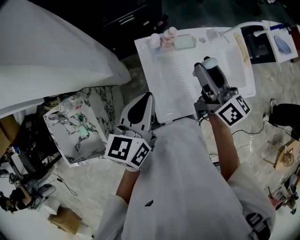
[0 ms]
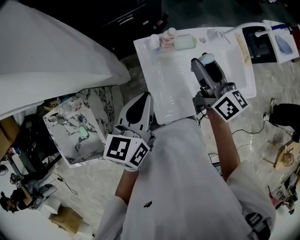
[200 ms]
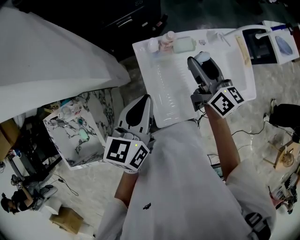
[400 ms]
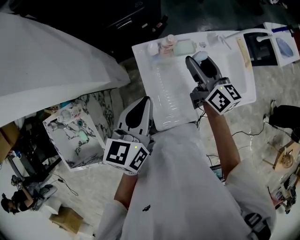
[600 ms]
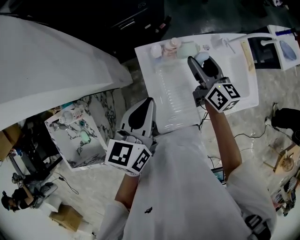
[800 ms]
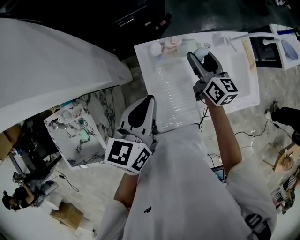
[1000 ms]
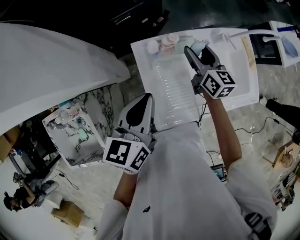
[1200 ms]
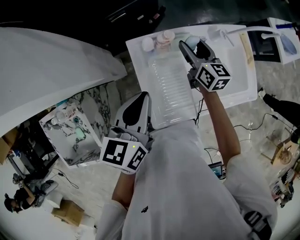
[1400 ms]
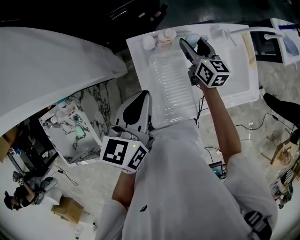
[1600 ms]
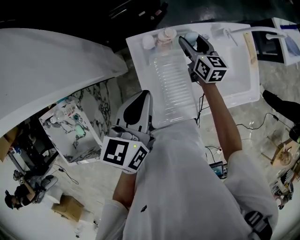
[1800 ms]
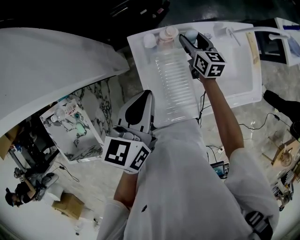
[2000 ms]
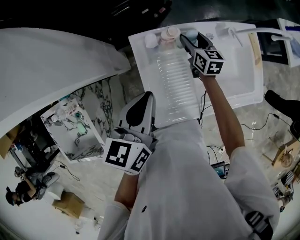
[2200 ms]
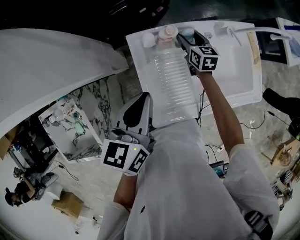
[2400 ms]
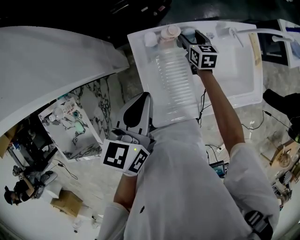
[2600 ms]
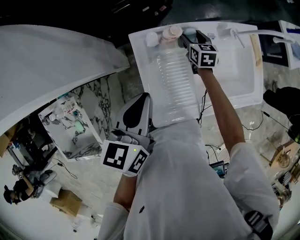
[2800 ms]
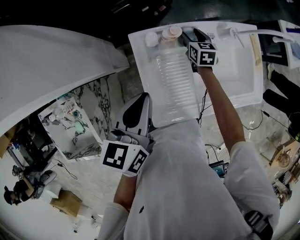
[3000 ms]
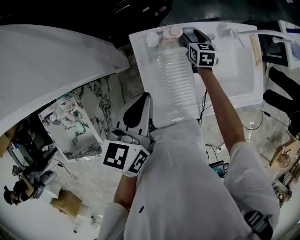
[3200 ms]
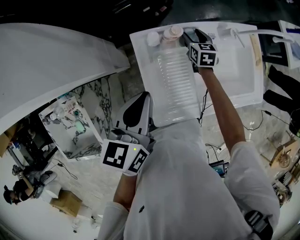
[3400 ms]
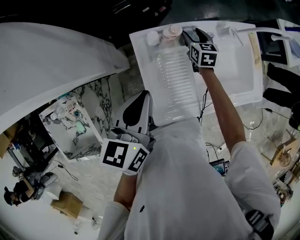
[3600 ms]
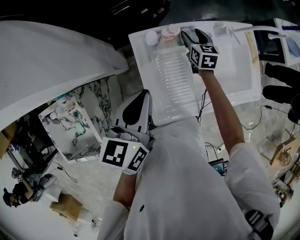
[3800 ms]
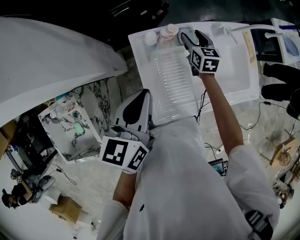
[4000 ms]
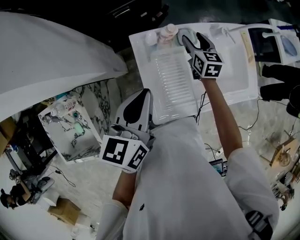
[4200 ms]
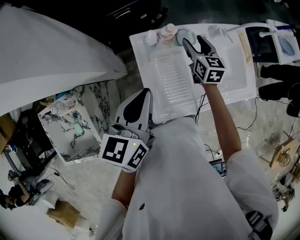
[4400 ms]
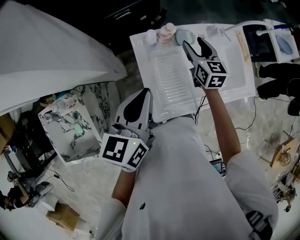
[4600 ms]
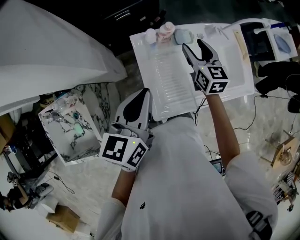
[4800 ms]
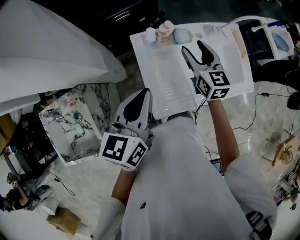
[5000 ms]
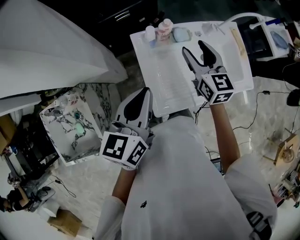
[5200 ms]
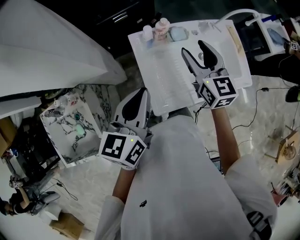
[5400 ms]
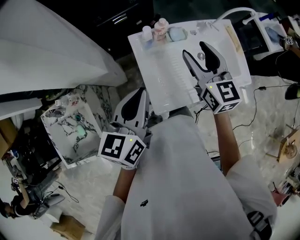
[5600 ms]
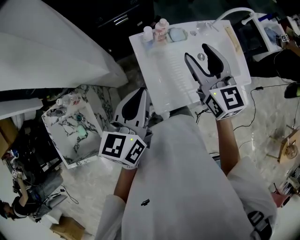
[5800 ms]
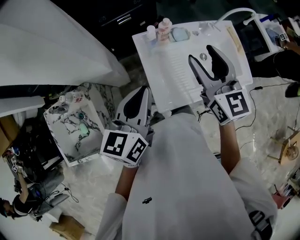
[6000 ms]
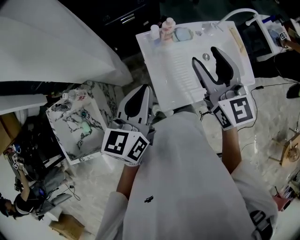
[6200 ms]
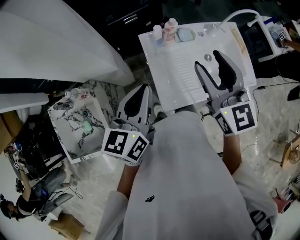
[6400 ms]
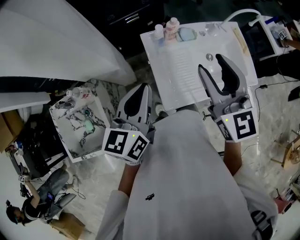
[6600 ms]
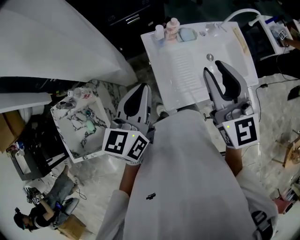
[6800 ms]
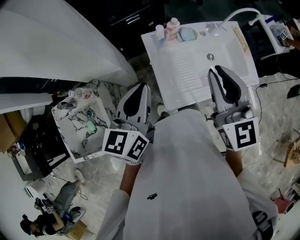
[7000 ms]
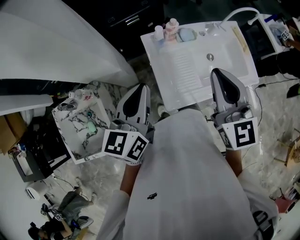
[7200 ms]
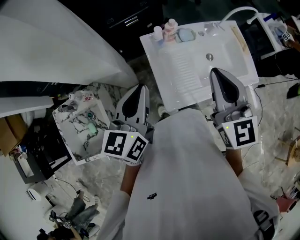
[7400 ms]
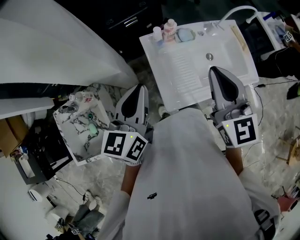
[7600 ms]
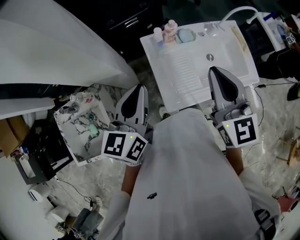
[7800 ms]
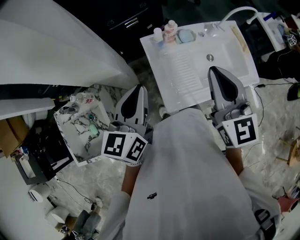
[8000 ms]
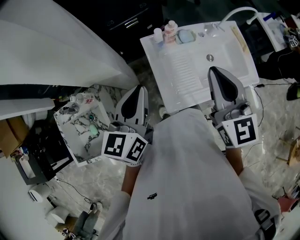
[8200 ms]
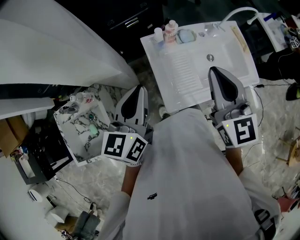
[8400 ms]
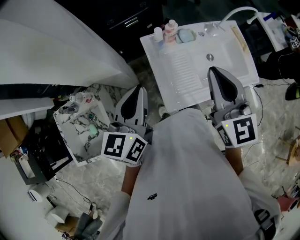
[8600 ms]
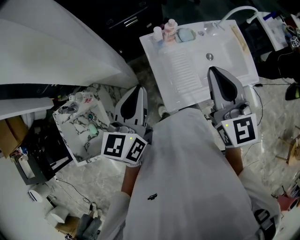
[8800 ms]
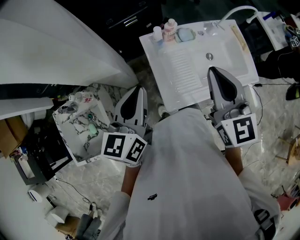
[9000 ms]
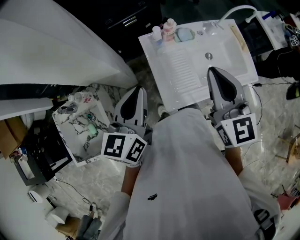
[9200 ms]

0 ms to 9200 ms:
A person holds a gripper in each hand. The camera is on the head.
0 ms to 1600 ms: The left gripper goes approximately 5 cm forward; the right gripper is displaced downward and forward by about 25 cm, and changes its angle by roughly 30 degrees.
1600 ms to 3000 ms: The right gripper goes roughly 10 cm downward, and swivels some 20 degrees.
3000 ms to 4600 ms: The left gripper shifts by approximately 5 cm; the right gripper is displaced upward and backward by some 20 cm.
4600 ms to 6200 ms: The right gripper heads upward and backward, covering some 30 cm, and changes its angle by approximately 20 degrees. Meanwhile the left gripper moves backward, approximately 10 cm.
6200 ms to 7600 ms: The right gripper is displaced backward by some 5 cm, and closes up.
7600 ms to 9200 ms: The two grippers keep their place.

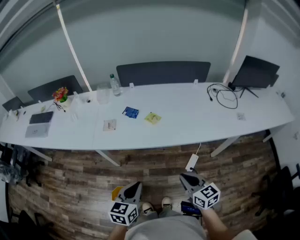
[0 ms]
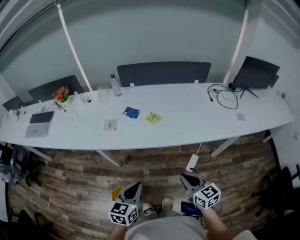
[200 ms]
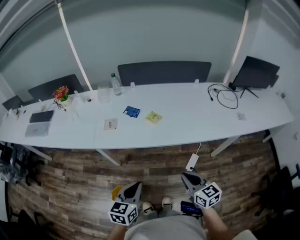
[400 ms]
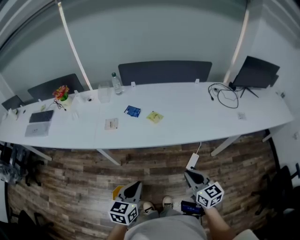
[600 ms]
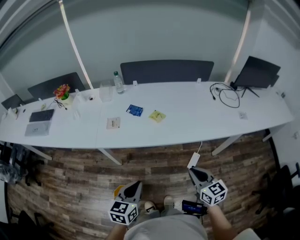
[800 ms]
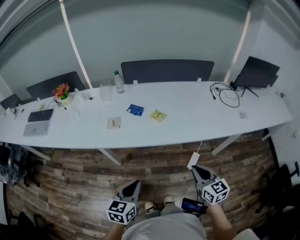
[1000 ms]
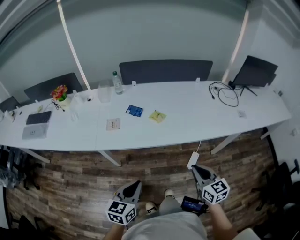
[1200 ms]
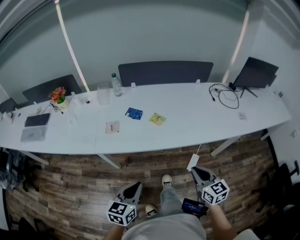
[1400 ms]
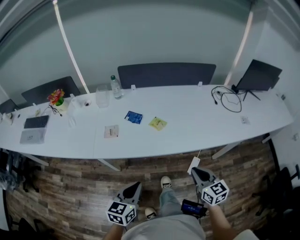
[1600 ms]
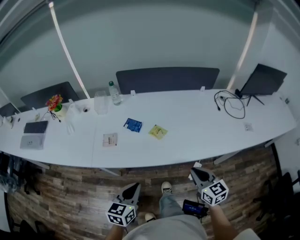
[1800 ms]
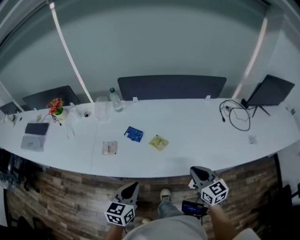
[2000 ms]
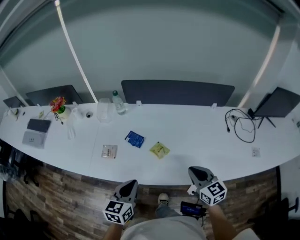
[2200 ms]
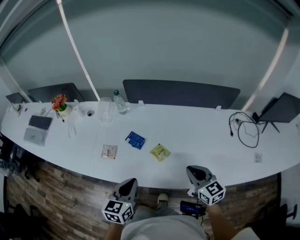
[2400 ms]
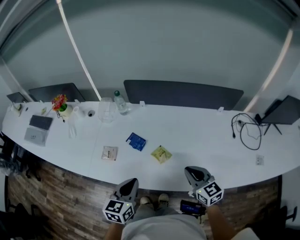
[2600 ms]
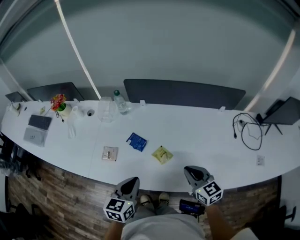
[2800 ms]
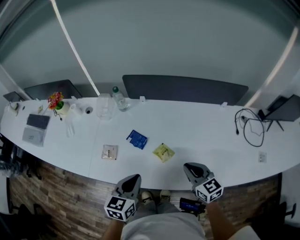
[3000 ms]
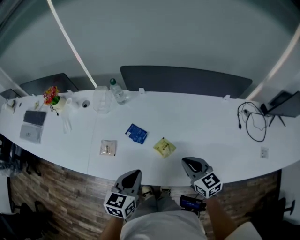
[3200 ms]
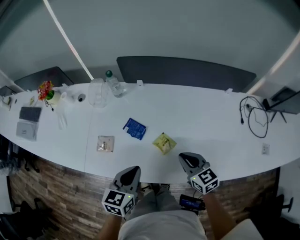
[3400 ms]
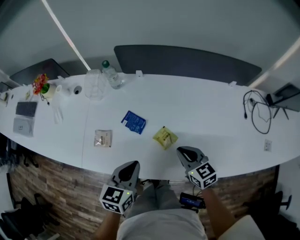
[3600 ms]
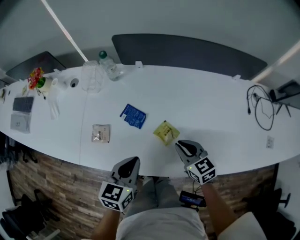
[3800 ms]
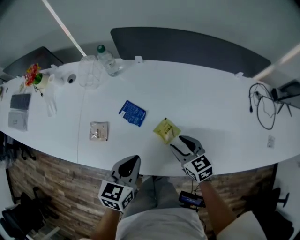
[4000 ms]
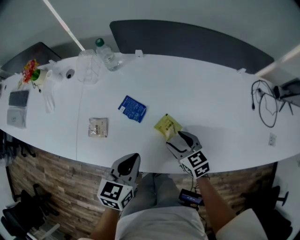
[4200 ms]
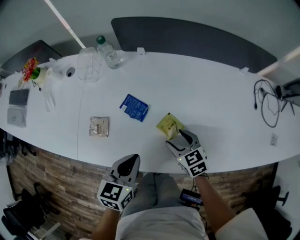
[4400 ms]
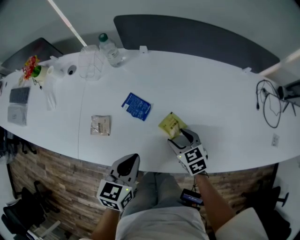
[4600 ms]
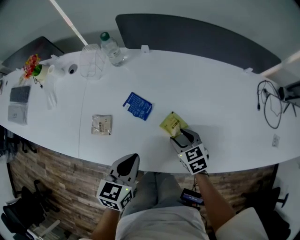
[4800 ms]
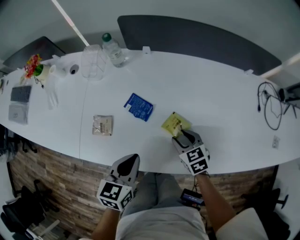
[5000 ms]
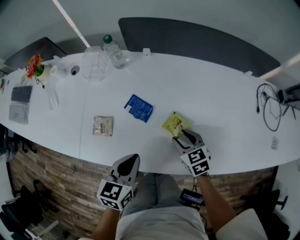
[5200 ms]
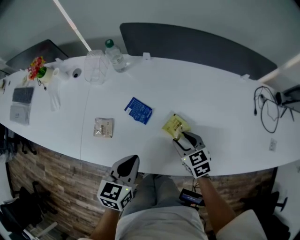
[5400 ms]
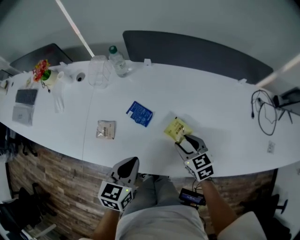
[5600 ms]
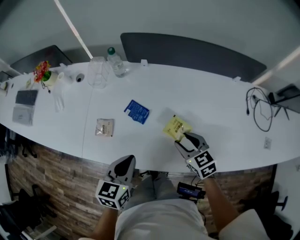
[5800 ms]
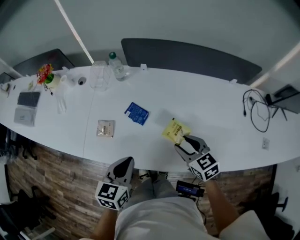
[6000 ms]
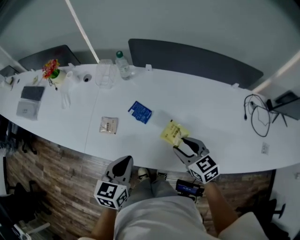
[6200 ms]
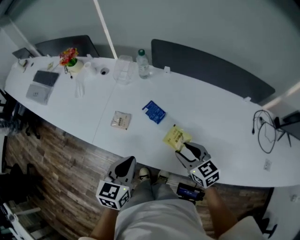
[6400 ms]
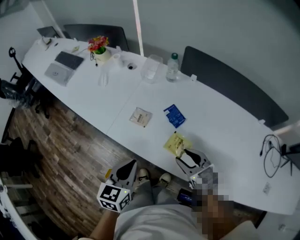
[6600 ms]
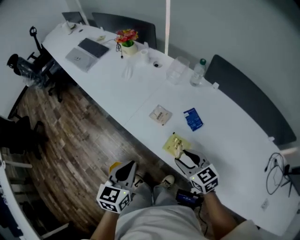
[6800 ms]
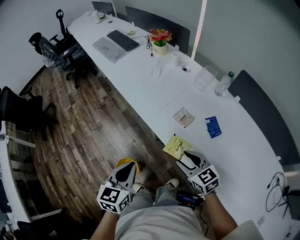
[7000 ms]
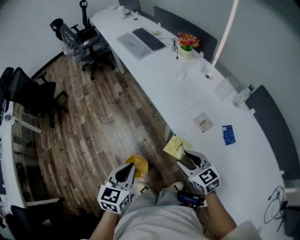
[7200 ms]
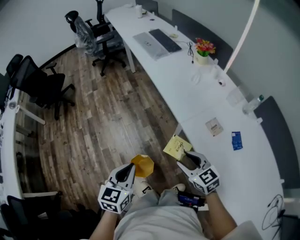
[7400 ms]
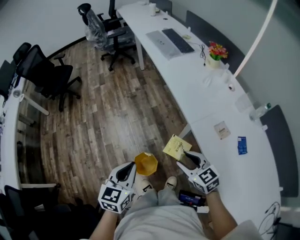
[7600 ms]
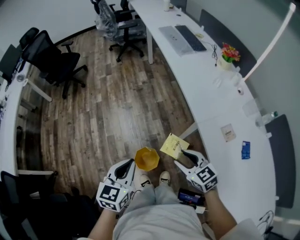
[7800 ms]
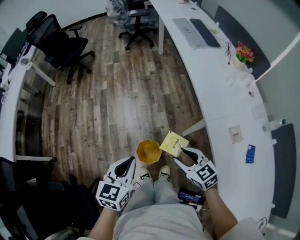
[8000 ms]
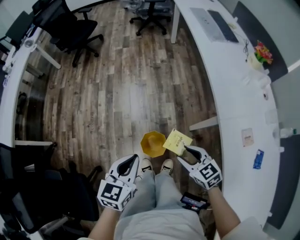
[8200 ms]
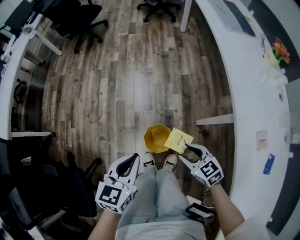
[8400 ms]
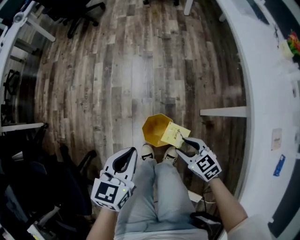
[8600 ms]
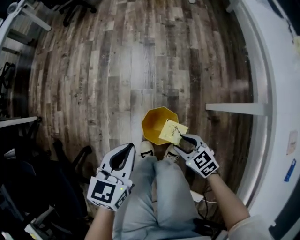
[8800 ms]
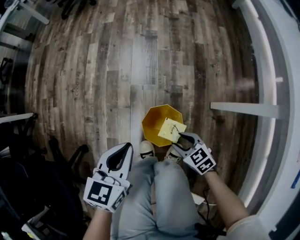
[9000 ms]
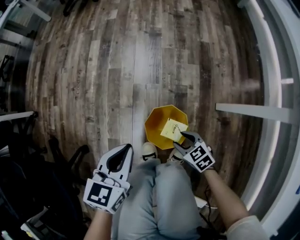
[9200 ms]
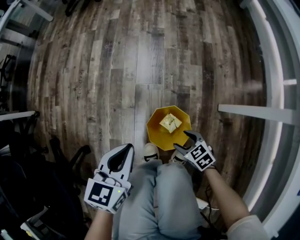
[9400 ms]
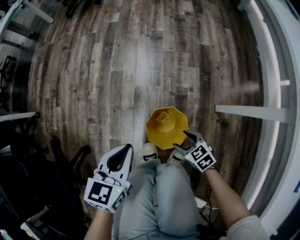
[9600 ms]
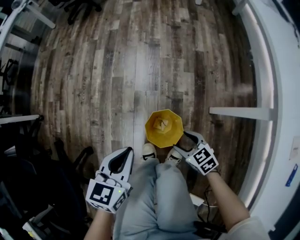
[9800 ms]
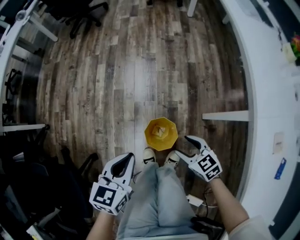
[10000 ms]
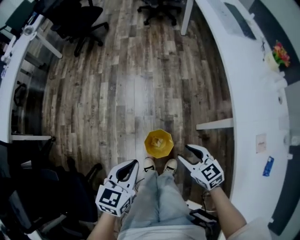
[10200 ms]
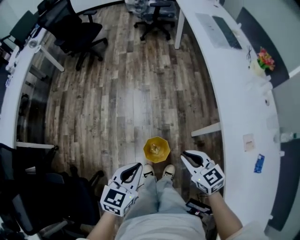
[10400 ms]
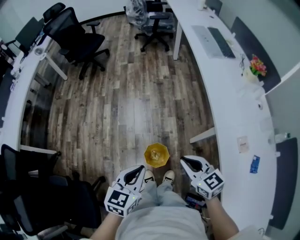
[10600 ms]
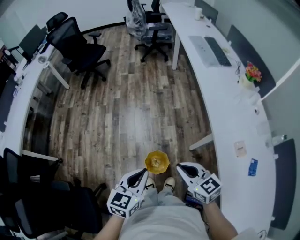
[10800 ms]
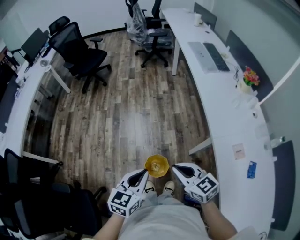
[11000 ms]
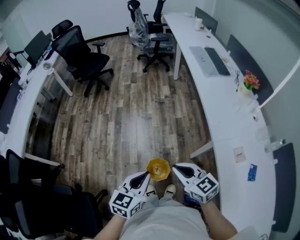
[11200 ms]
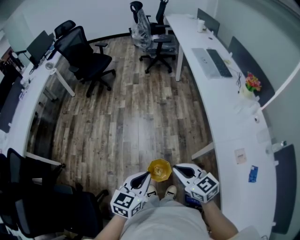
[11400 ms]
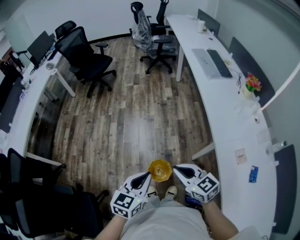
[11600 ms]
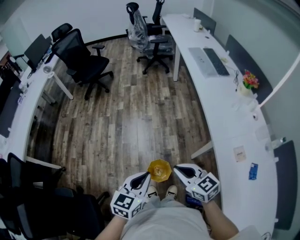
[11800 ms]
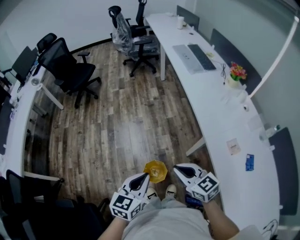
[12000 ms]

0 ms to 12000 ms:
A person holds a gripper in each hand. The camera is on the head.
0 ms to 1600 ms: The two grippers go about 5 cm forward.
1600 ms to 3000 ms: The grippers both shift forward by some 25 cm.
3000 ms to 4400 ms: The right gripper goes some 20 cm downward and to the left, and opens its fingers, while the left gripper heads downward, covering some 10 cm.
4400 ms to 6000 ms: The left gripper heads upward, covering about 5 cm. The right gripper travels upward by some 10 cm.
6000 ms to 7600 ms: The two grippers travel together, approximately 50 cm. The left gripper swivels about 60 degrees; the right gripper swivels some 60 degrees.
7600 ms to 9000 ms: The two grippers go some 40 cm downward. The left gripper rotates roughly 30 degrees, while the right gripper rotates about 40 degrees.
9000 ms to 10400 ms: The left gripper travels upward by approximately 30 cm. The right gripper heads upward, covering approximately 40 cm, turns by approximately 30 degrees, and closes its fingers.
10400 ms to 12000 ms: The two grippers go approximately 10 cm upward.

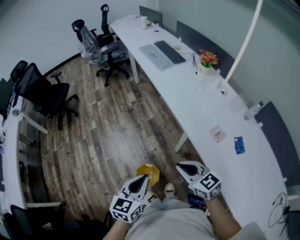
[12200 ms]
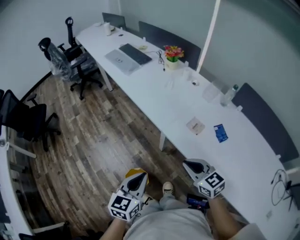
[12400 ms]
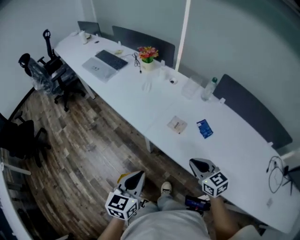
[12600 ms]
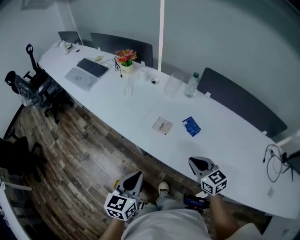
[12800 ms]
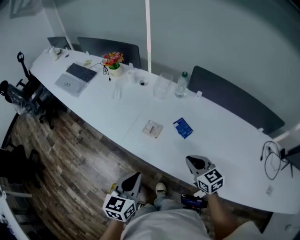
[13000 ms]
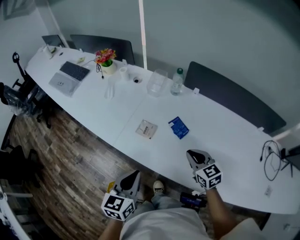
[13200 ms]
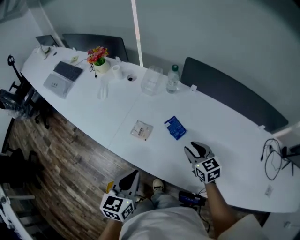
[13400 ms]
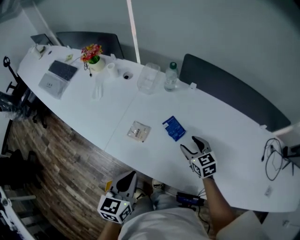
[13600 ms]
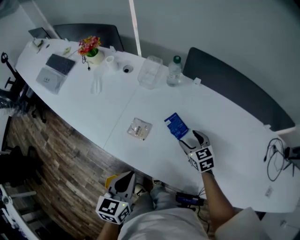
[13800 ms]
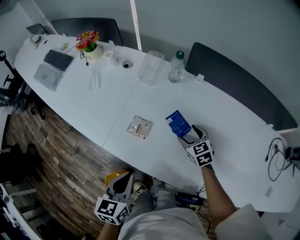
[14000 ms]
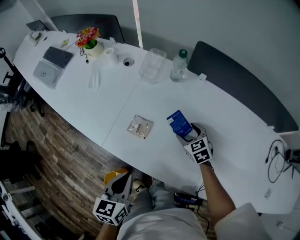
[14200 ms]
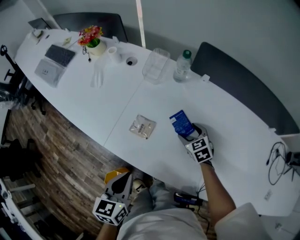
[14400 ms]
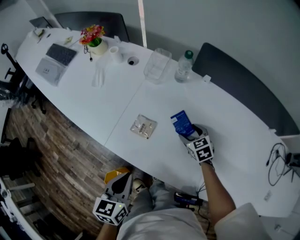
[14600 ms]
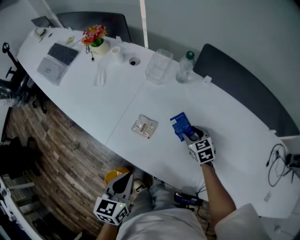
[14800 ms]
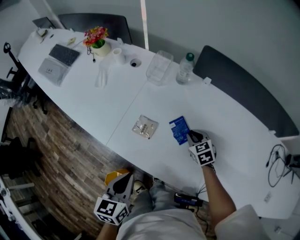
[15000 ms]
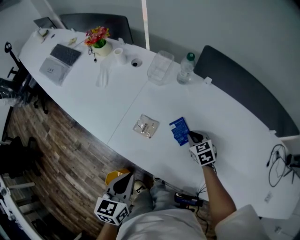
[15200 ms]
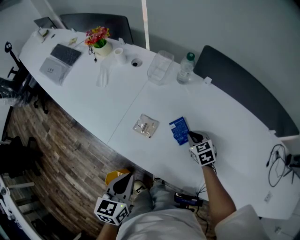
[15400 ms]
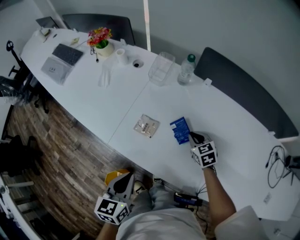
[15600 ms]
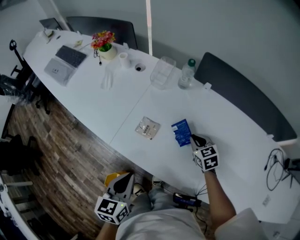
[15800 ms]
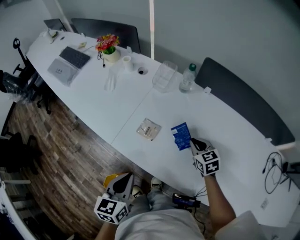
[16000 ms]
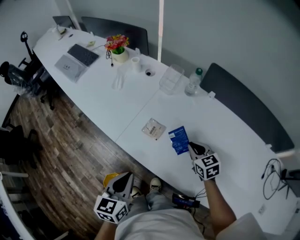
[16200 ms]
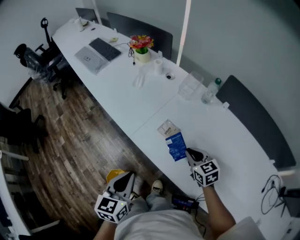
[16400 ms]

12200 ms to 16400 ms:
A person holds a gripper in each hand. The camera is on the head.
12200 ms to 13600 ms: The left gripper shifts by approximately 35 cm, and rotates approximately 30 degrees; the right gripper moves approximately 50 cm, rotates some 50 degrees, and opens its fingers.
13600 ms to 15000 ms: The left gripper shifts by some 5 cm, while the right gripper goes about 10 cm downward and forward, and closes up.
15000 ms to 16400 ms: The right gripper shifts some 15 cm to the left, upward and backward, and rotates roughly 20 degrees. The left gripper shifts about 10 cm to the left and backward.
